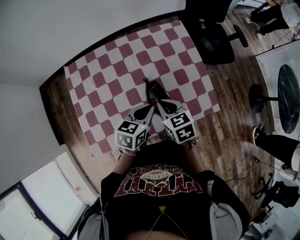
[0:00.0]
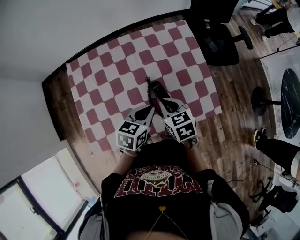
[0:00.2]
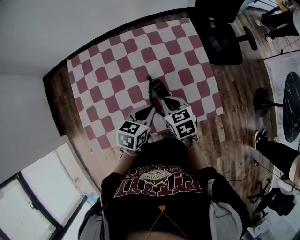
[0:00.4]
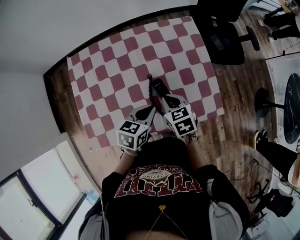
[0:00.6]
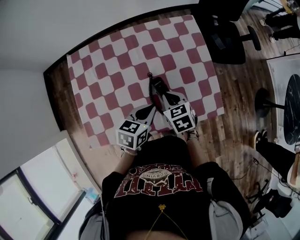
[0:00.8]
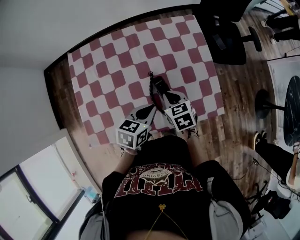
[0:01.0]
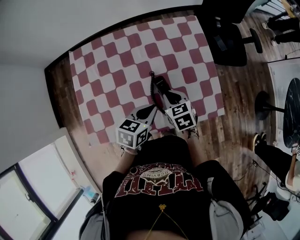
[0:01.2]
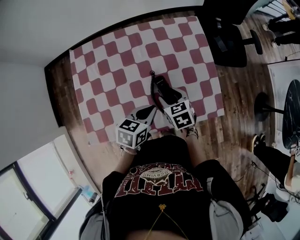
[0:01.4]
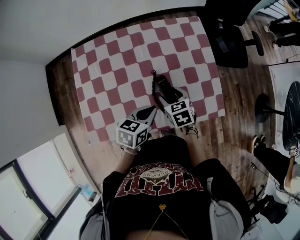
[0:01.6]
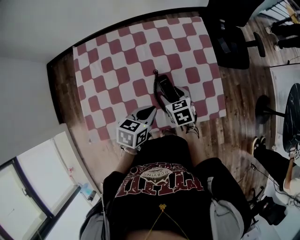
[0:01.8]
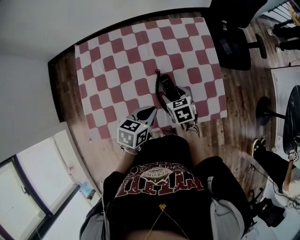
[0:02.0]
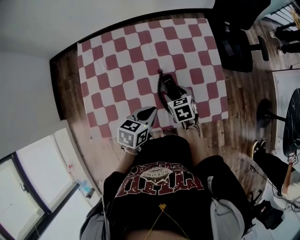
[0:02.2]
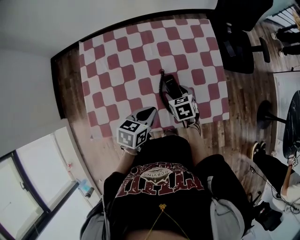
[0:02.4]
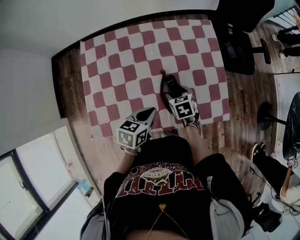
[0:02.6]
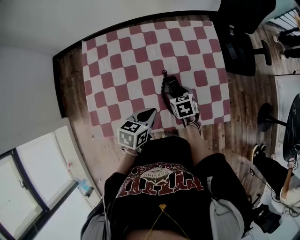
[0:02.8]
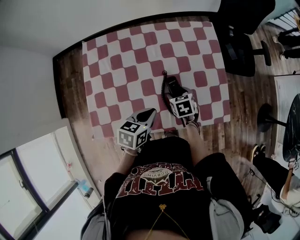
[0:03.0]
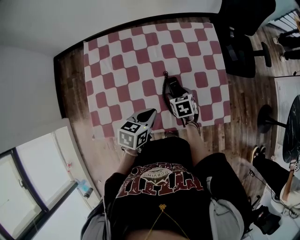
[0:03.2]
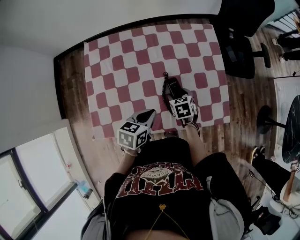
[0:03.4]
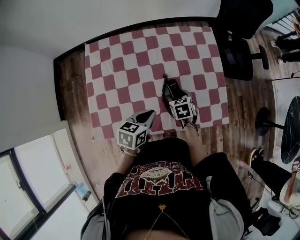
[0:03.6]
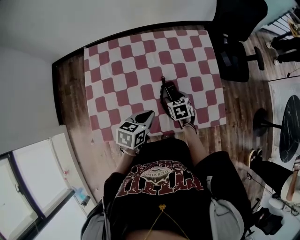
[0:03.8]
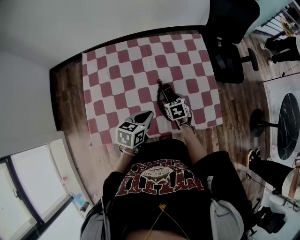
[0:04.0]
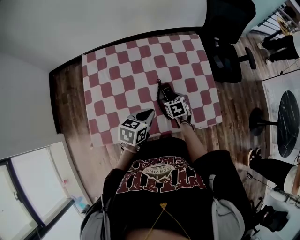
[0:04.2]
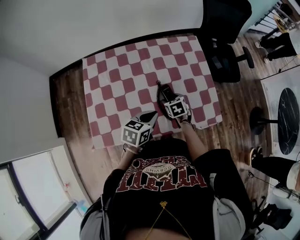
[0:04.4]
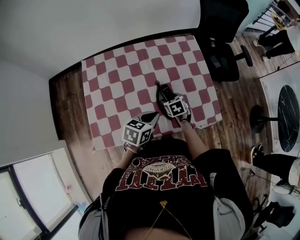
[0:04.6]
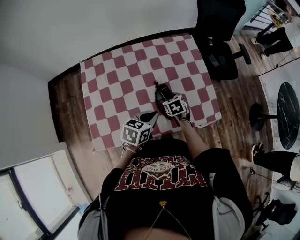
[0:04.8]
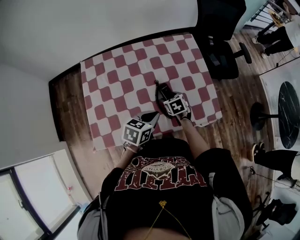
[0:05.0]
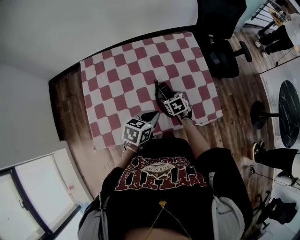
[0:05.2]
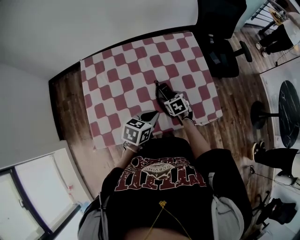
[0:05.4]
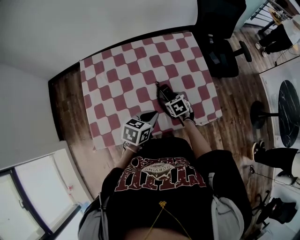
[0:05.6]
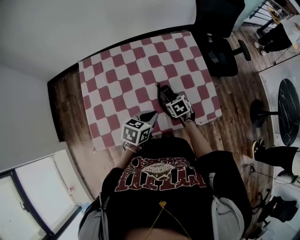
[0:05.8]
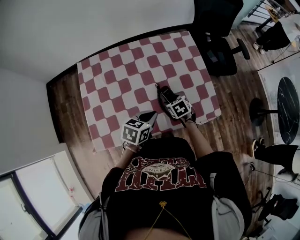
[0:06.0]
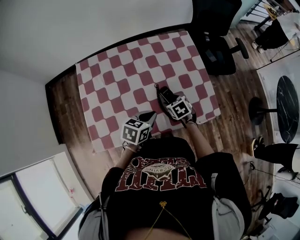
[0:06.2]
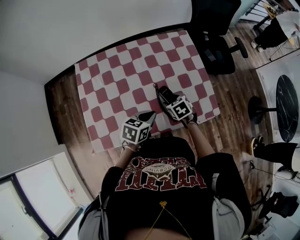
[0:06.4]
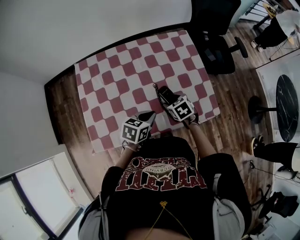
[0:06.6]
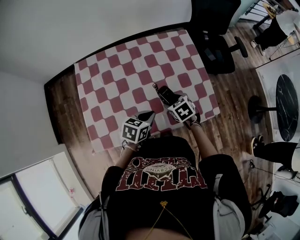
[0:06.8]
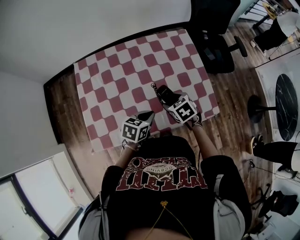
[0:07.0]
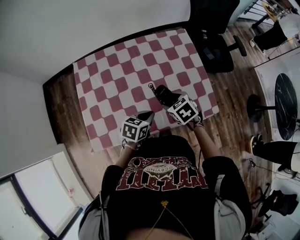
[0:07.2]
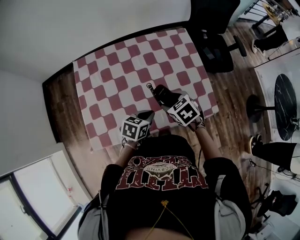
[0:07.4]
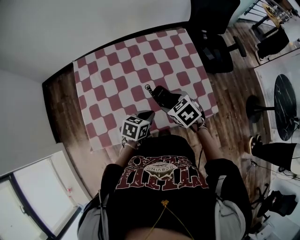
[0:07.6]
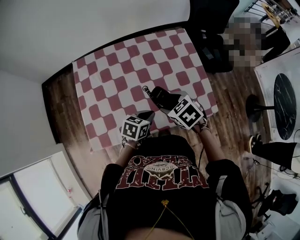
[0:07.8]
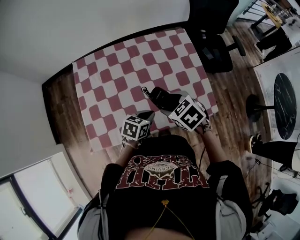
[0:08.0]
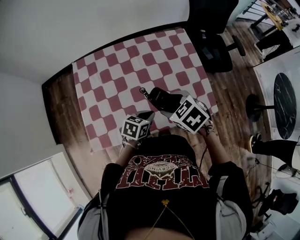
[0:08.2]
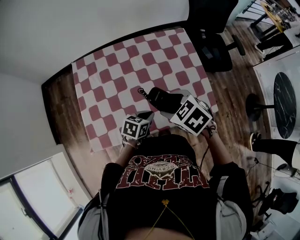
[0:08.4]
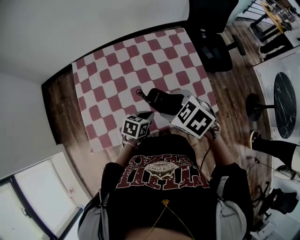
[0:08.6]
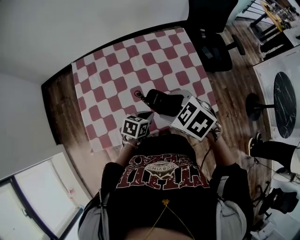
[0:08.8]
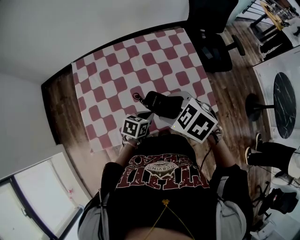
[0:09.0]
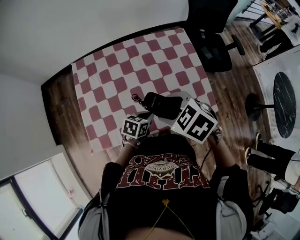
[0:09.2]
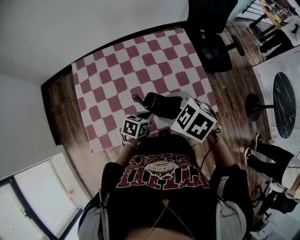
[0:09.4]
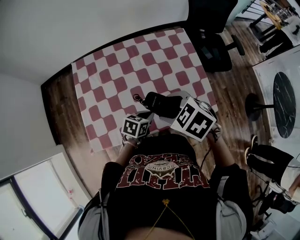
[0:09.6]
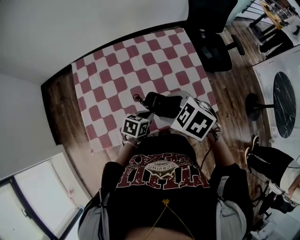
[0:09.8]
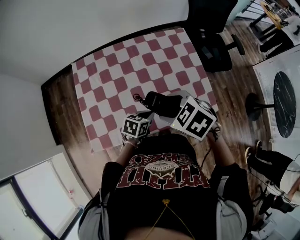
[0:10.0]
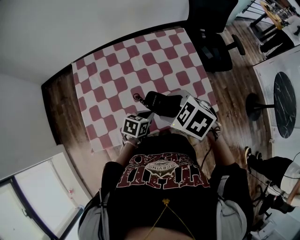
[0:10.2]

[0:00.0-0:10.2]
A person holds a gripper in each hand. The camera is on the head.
0:00.0 to 0:01.4: The right gripper is displaced downward by roughly 10 cm, and opens its fingers.
0:01.4 to 0:03.0: The right gripper is displaced downward by some 5 cm.
0:03.0 to 0:05.8: The grippers move only a little.
0:05.8 to 0:07.2: The right gripper travels upward by some 10 cm.
0:07.2 to 0:08.8: The right gripper travels upward by some 15 cm.
0:08.8 to 0:10.2: The grippers make only small movements.

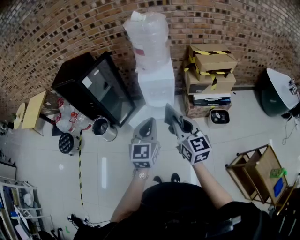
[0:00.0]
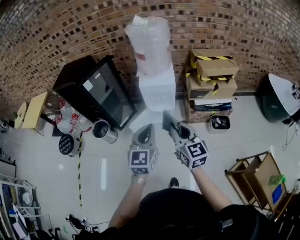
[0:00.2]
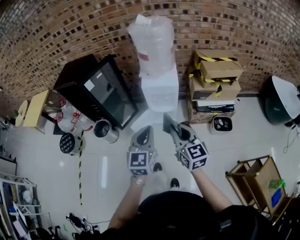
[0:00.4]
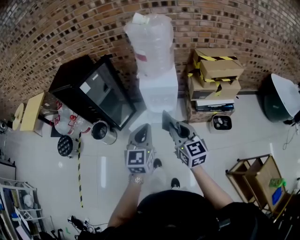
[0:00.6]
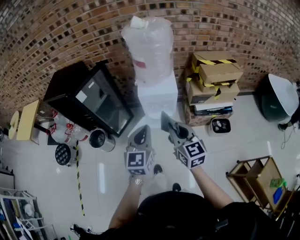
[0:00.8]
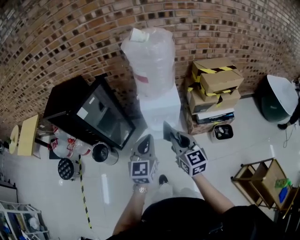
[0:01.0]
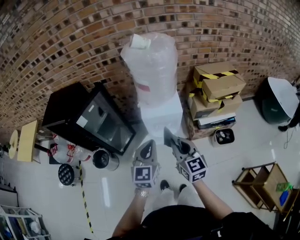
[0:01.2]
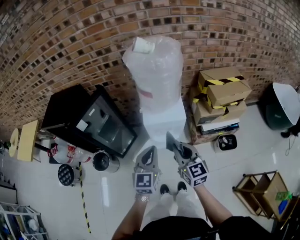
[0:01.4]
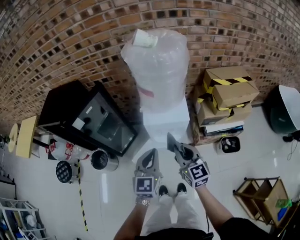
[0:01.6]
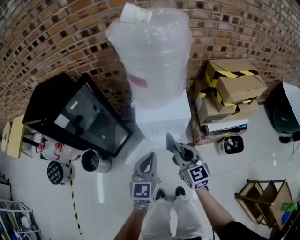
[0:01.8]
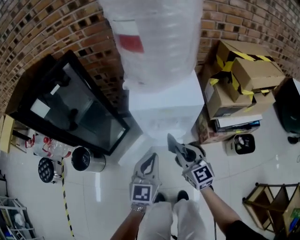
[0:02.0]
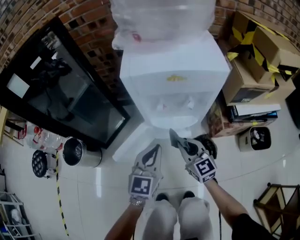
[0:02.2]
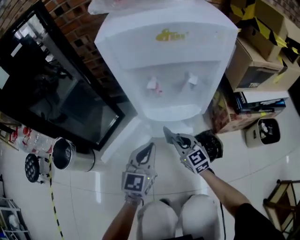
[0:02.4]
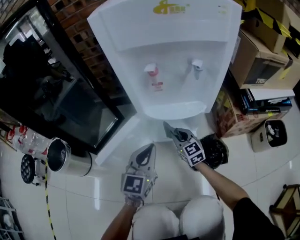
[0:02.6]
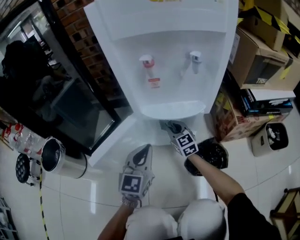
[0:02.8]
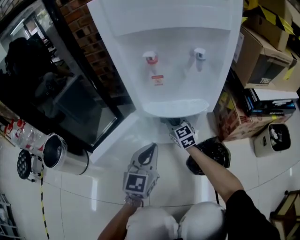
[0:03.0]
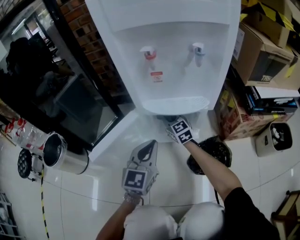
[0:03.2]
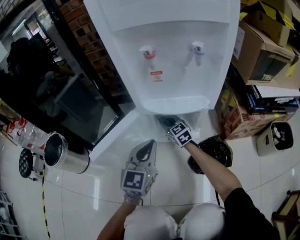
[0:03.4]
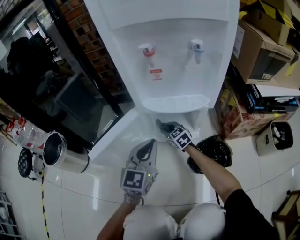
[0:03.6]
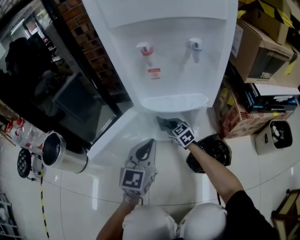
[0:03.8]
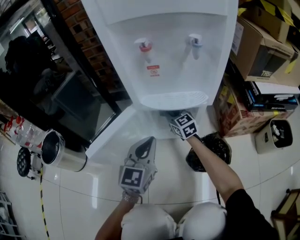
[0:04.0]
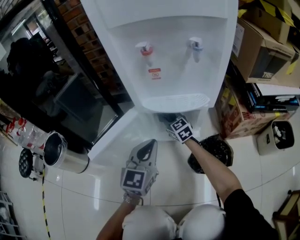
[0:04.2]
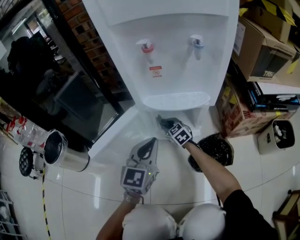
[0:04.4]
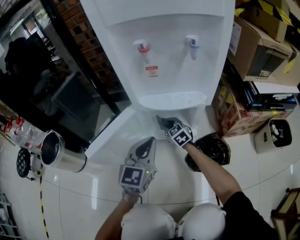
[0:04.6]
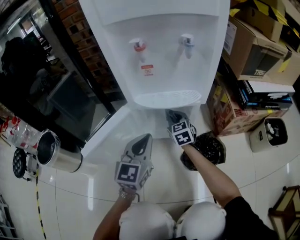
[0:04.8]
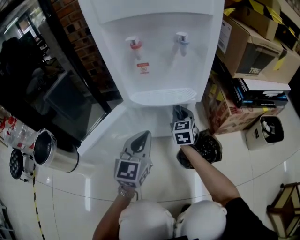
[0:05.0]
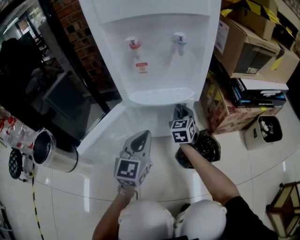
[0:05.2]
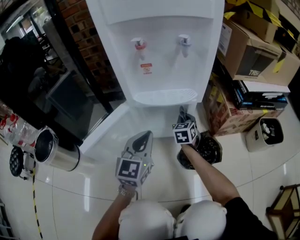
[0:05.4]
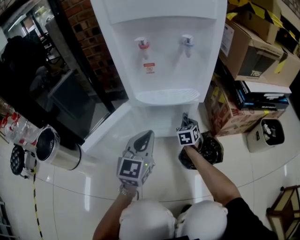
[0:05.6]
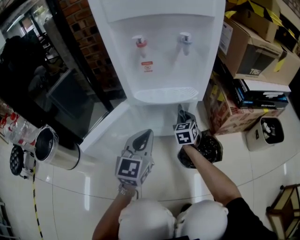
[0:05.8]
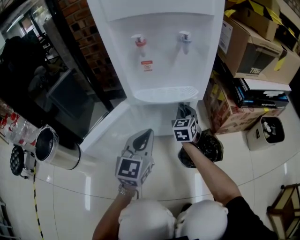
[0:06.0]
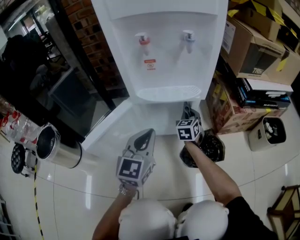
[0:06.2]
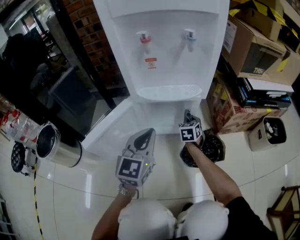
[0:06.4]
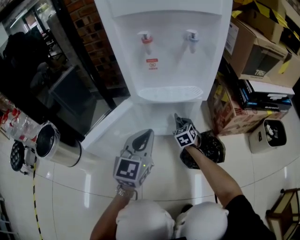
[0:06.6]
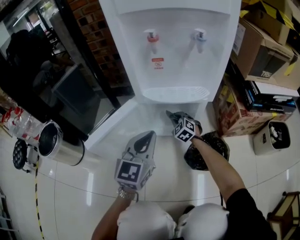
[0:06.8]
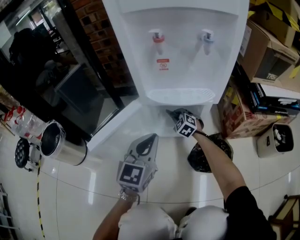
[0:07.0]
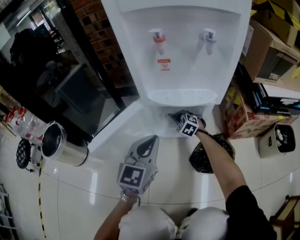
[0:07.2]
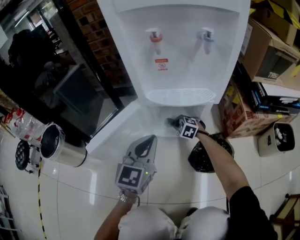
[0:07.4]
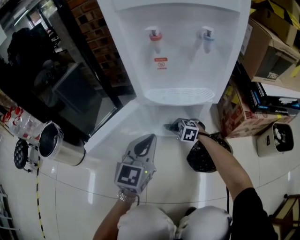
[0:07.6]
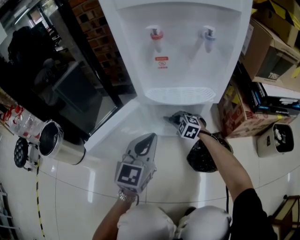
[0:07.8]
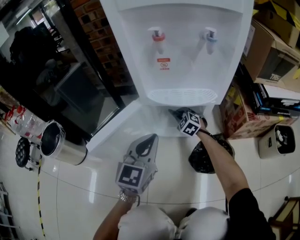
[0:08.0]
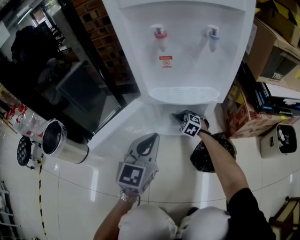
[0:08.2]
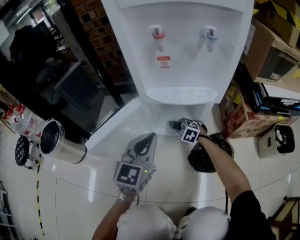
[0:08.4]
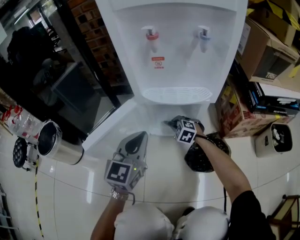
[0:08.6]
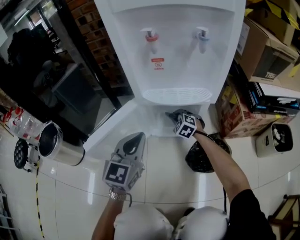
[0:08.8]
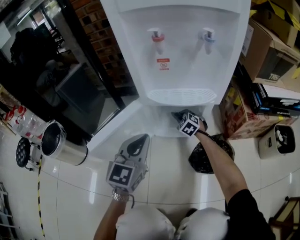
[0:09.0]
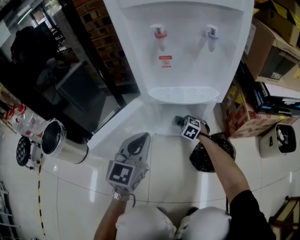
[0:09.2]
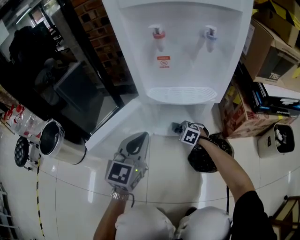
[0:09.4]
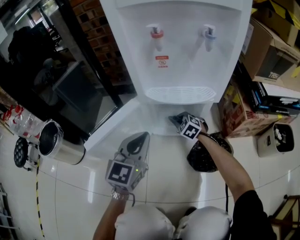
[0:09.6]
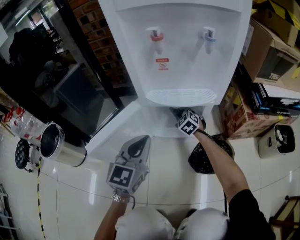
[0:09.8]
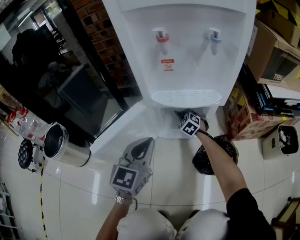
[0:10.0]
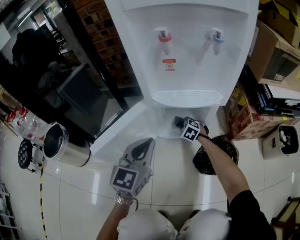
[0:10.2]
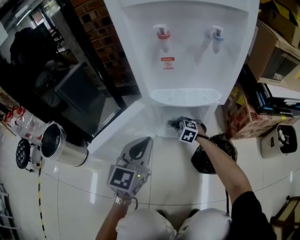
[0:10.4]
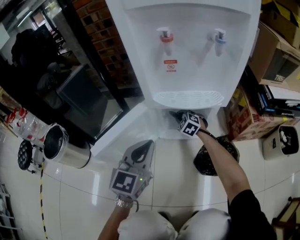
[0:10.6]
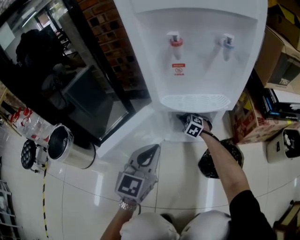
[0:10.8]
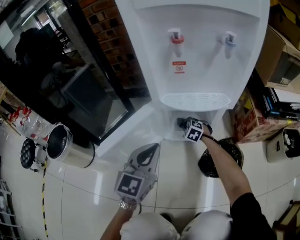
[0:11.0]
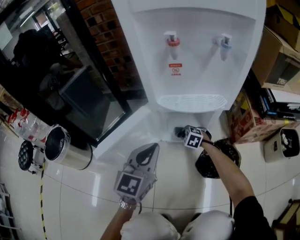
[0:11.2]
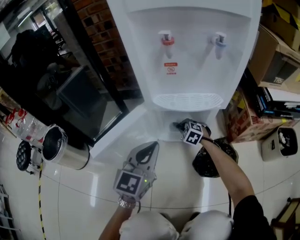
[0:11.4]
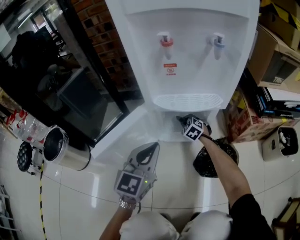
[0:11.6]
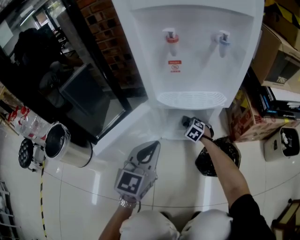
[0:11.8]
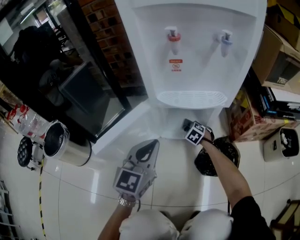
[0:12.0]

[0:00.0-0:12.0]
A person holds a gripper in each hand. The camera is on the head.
0:00.0 to 0:01.6: The left gripper shifts roughly 25 cm forward; the right gripper shifts roughly 30 cm forward and downward.
0:01.6 to 0:03.0: The grippers both shift downward by some 70 cm.
0:03.0 to 0:04.4: The right gripper goes up and down, some 10 cm each way, reversing 2 times.
0:04.4 to 0:06.0: The right gripper moves up and down over roughly 10 cm, changing direction 2 times, and swivels roughly 40 degrees.
0:06.0 to 0:07.6: The right gripper shifts roughly 15 cm downward, and points its fingers some 30 degrees further downward.
0:07.6 to 0:09.0: The right gripper moves forward and backward over roughly 5 cm, changing direction 2 times, and swivels roughly 20 degrees.
0:09.0 to 0:10.4: The right gripper swings forward and backward, roughly 10 cm each way, with 2 reversals.
0:10.4 to 0:12.0: The right gripper moves forward and backward over roughly 10 cm, changing direction 3 times.

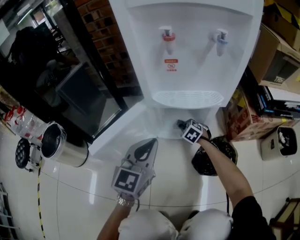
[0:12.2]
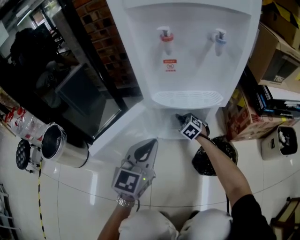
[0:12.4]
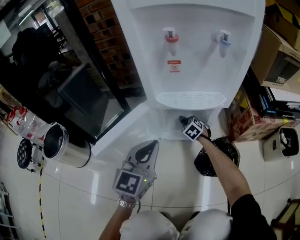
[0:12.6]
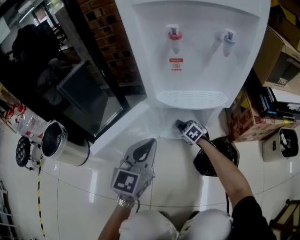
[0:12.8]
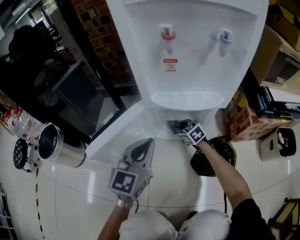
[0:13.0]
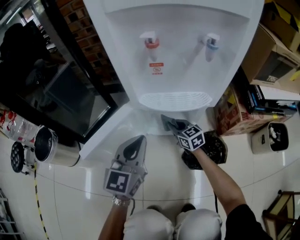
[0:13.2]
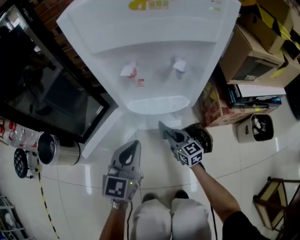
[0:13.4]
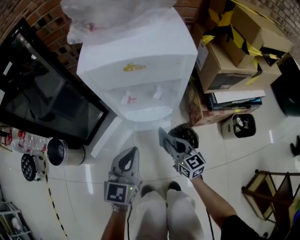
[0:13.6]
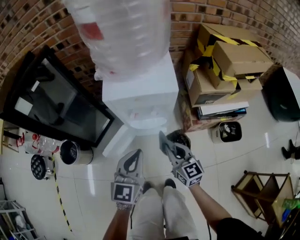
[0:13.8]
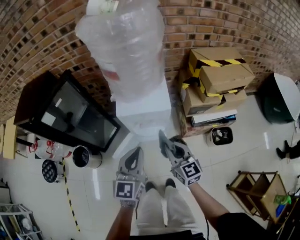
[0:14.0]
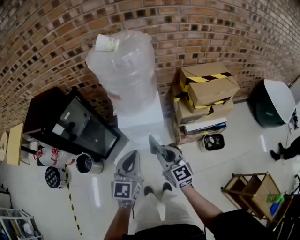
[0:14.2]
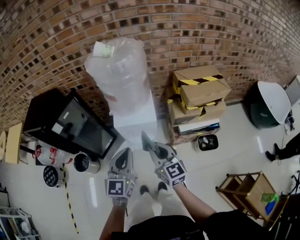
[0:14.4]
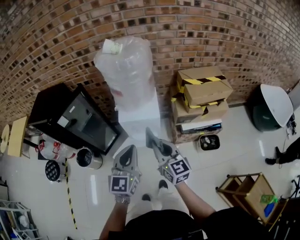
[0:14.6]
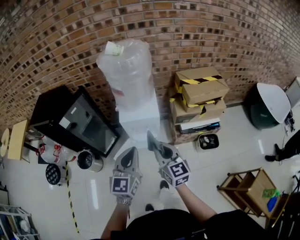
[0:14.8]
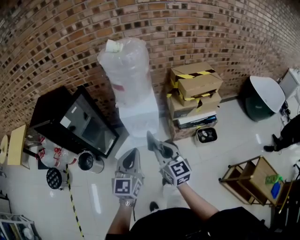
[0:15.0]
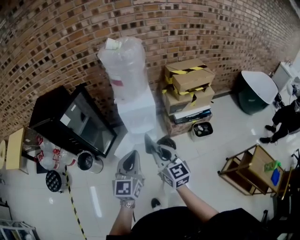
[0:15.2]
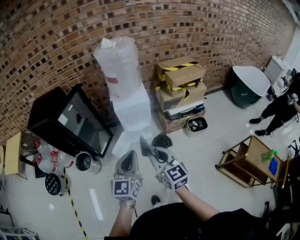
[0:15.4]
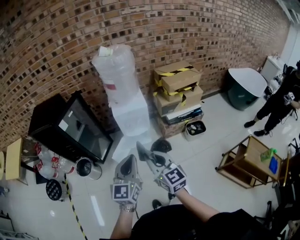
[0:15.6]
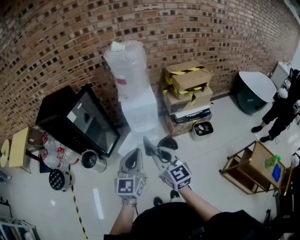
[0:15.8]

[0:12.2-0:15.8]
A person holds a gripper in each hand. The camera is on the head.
0:12.2 to 0:14.0: The left gripper travels upward by approximately 60 cm; the right gripper goes up and down, some 80 cm each way, reversing 2 times, and tips its fingers upward by roughly 40 degrees.
0:14.0 to 0:15.8: Both grippers travel together backward and upward, approximately 40 cm.
